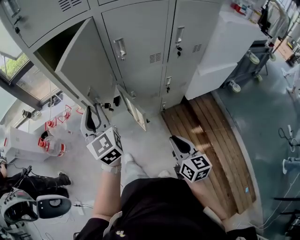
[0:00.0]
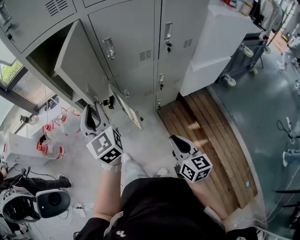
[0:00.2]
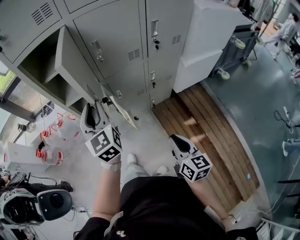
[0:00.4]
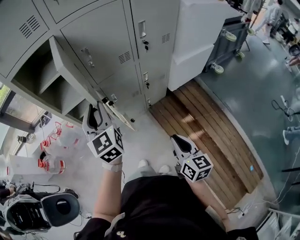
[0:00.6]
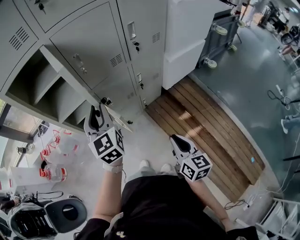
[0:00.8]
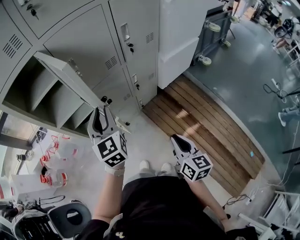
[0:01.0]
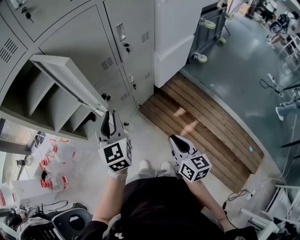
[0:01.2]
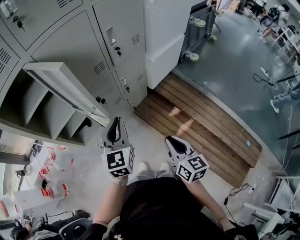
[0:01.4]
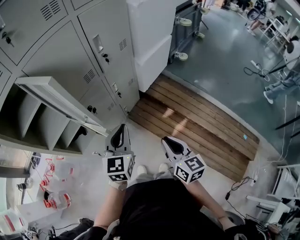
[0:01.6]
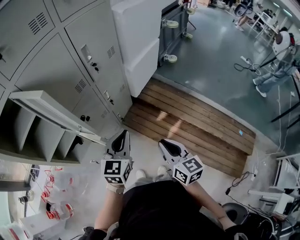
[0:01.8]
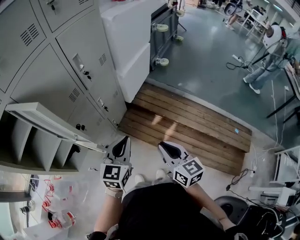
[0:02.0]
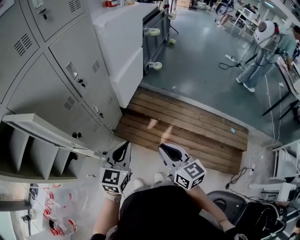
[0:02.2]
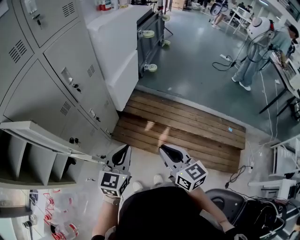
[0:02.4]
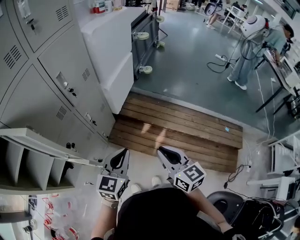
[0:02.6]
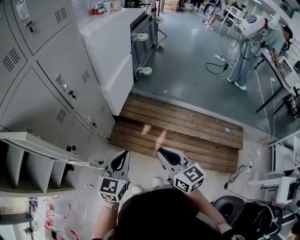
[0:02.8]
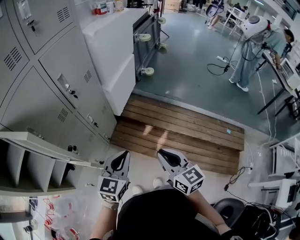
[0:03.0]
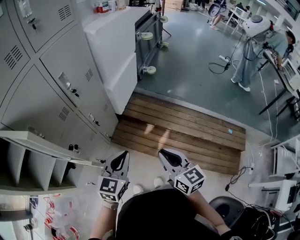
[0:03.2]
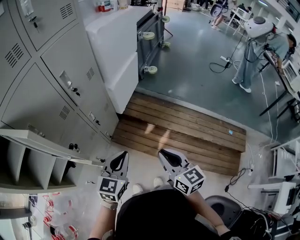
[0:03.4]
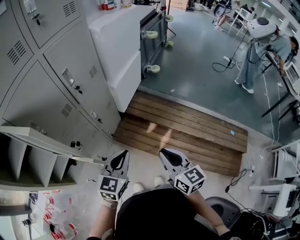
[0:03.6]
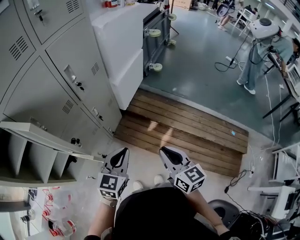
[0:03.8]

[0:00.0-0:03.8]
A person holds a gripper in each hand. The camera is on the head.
0:00.0 to 0:01.2: The left gripper shifts by some 20 cm, and rotates approximately 40 degrees, while the right gripper changes place by approximately 10 cm, and rotates about 20 degrees.
0:01.2 to 0:02.6: The right gripper ends up some 10 cm from where it was, while the left gripper moves some 20 cm, and turns by roughly 60 degrees.
0:02.6 to 0:03.8: The grippers stay close to where they were, moving slightly.

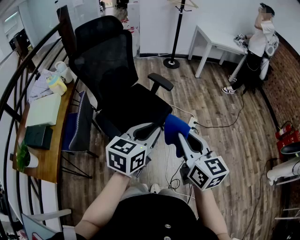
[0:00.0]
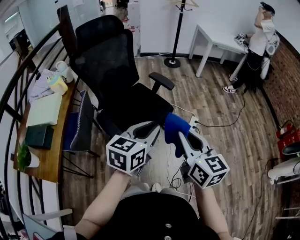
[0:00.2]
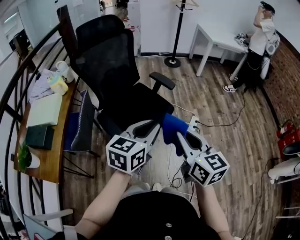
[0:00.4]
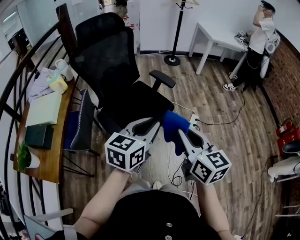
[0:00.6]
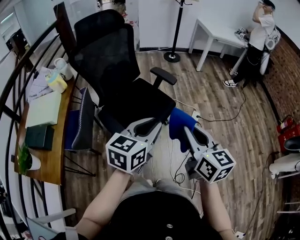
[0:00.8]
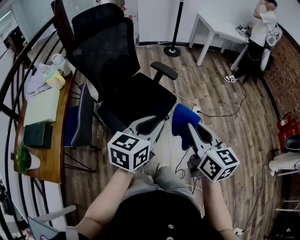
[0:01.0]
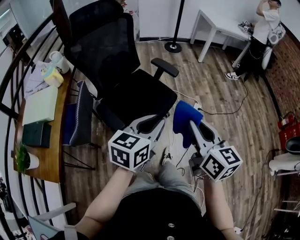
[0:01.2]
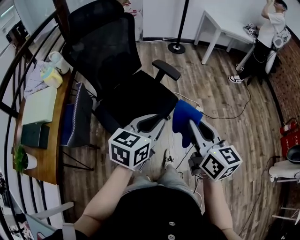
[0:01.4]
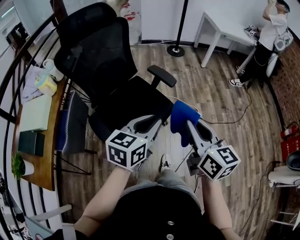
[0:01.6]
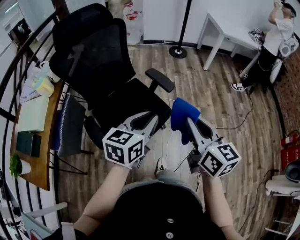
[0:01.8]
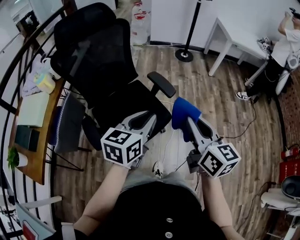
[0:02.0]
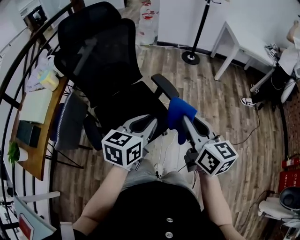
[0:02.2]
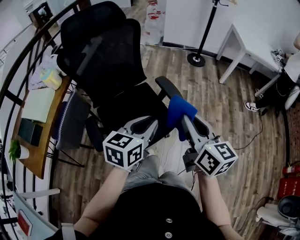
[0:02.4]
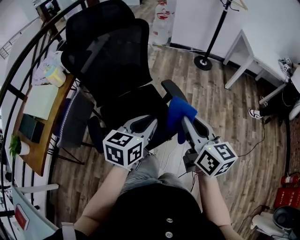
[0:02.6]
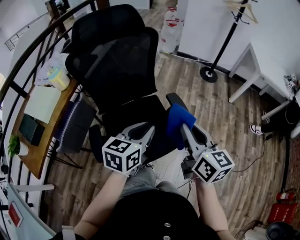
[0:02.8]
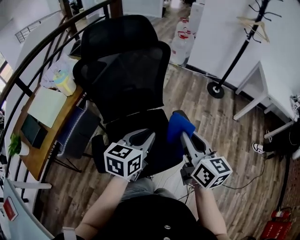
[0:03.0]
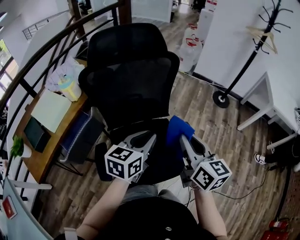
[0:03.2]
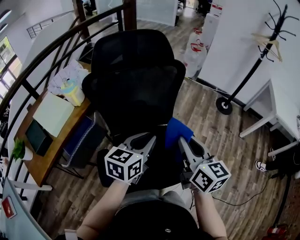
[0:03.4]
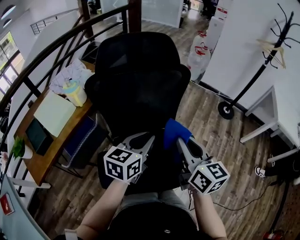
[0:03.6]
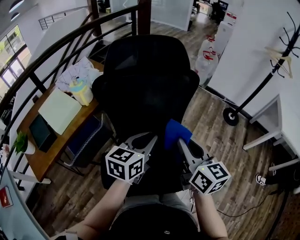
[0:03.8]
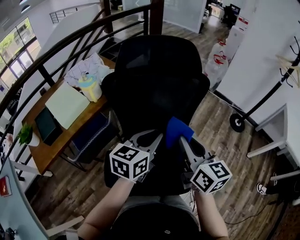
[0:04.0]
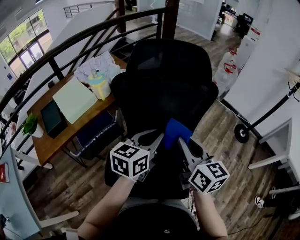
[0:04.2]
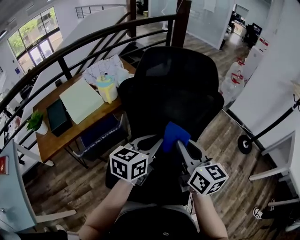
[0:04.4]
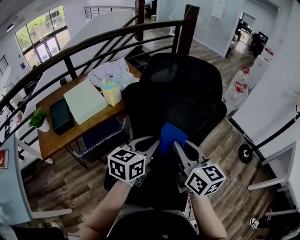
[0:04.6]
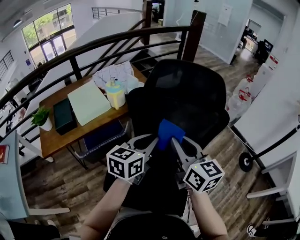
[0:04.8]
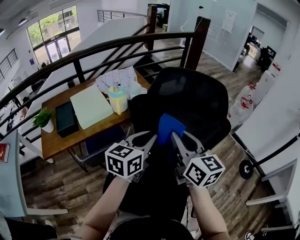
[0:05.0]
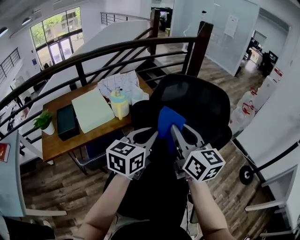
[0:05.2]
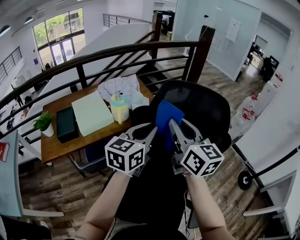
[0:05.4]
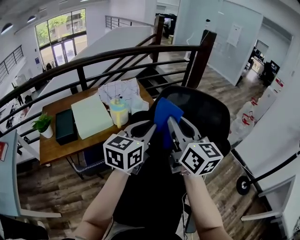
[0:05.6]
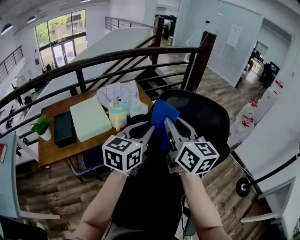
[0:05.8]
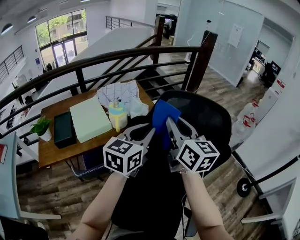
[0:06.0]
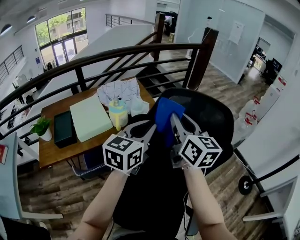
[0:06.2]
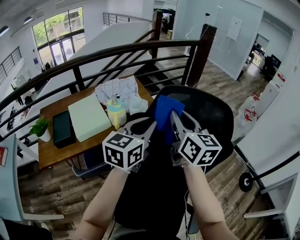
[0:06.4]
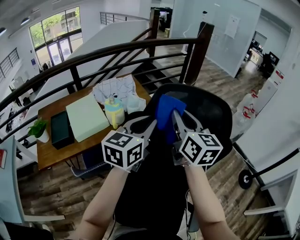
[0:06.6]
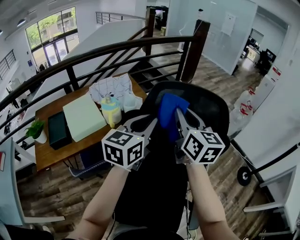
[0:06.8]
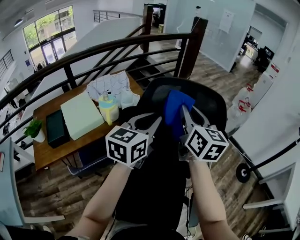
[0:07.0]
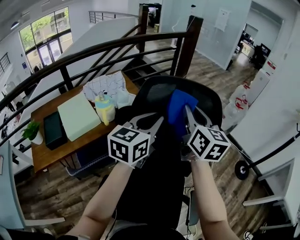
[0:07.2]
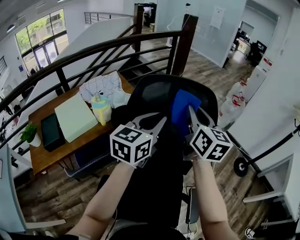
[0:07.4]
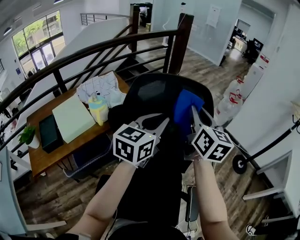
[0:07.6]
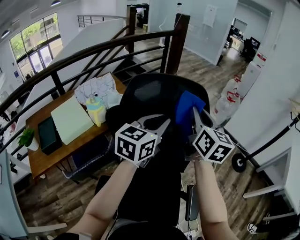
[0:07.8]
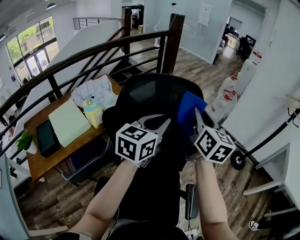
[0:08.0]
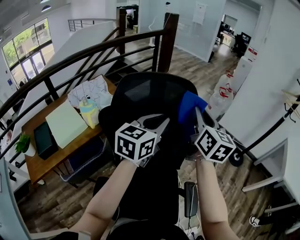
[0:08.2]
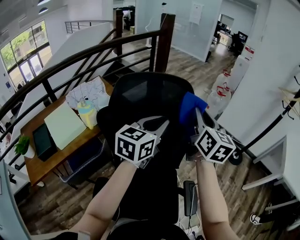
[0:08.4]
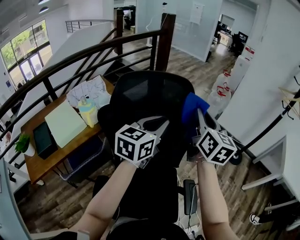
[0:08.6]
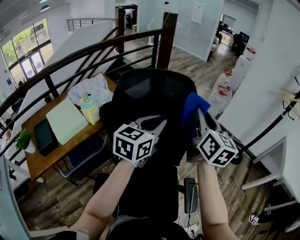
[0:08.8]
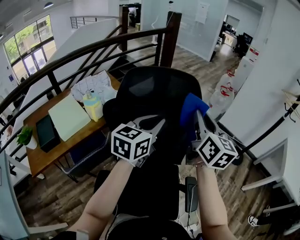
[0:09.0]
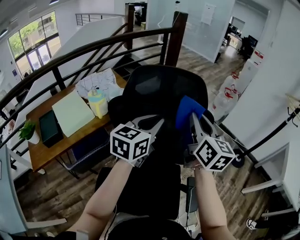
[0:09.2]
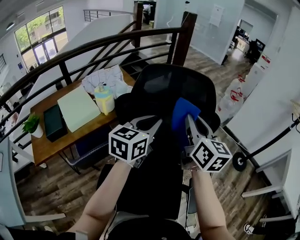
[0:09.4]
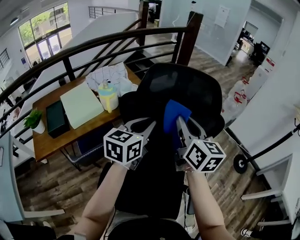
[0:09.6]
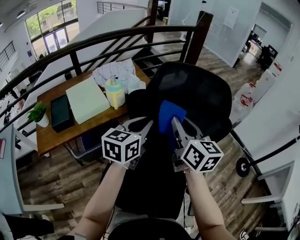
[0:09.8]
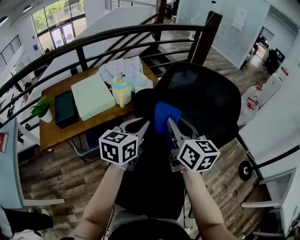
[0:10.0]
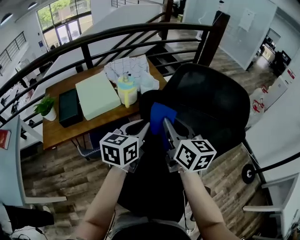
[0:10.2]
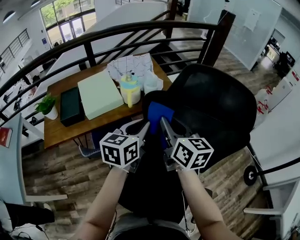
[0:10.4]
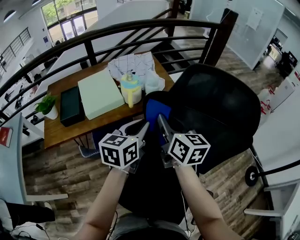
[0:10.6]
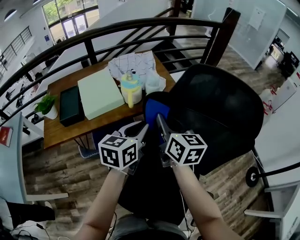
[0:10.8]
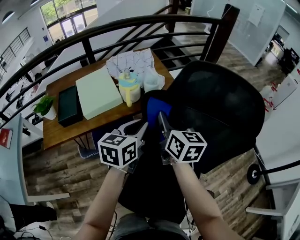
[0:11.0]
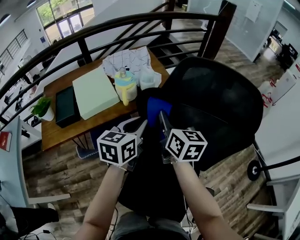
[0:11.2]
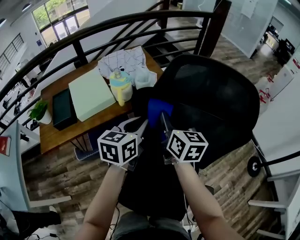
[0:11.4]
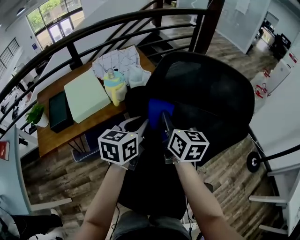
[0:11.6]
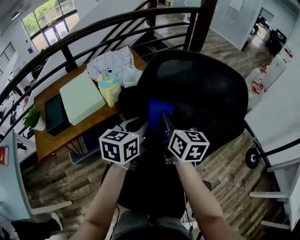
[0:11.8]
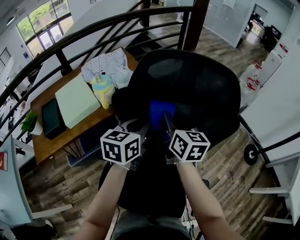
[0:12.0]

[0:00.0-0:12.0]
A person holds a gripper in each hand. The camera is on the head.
0:00.0 to 0:01.6: The two grippers go about 15 cm forward.
0:01.6 to 0:03.0: The left gripper changes place by some 25 cm, and rotates roughly 30 degrees; the right gripper ends up about 30 cm from where it was, and rotates about 20 degrees.
0:03.0 to 0:04.4: Both grippers move forward and to the left, about 20 cm. The right gripper swivels some 30 degrees, while the left gripper swivels about 20 degrees.
0:04.4 to 0:06.0: The left gripper travels forward, upward and to the left by some 20 cm, and changes its angle by approximately 20 degrees, while the right gripper heads forward and upward, covering approximately 25 cm.
0:06.0 to 0:07.6: Both grippers move to the right, approximately 15 cm. The right gripper swivels approximately 30 degrees.
0:07.6 to 0:09.0: The right gripper heads to the right and backward, covering some 10 cm; the left gripper ends up some 5 cm from where it was.
0:09.0 to 0:10.4: The left gripper shifts by roughly 25 cm, and turns by some 30 degrees. Meanwhile the right gripper ends up some 30 cm from where it was, and rotates approximately 40 degrees.
0:10.4 to 0:12.0: Both grippers travel together to the right, about 10 cm.

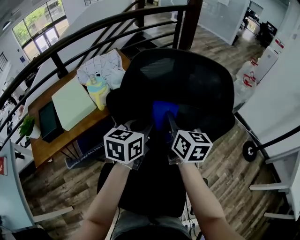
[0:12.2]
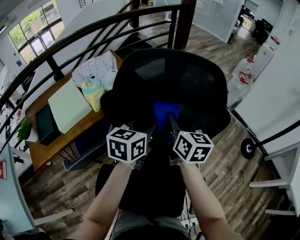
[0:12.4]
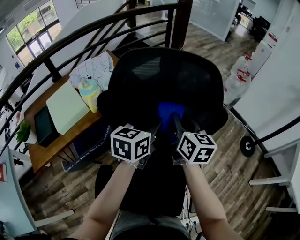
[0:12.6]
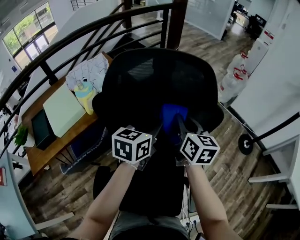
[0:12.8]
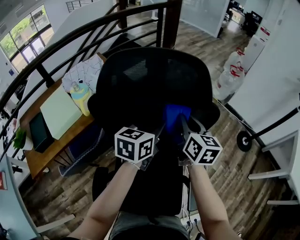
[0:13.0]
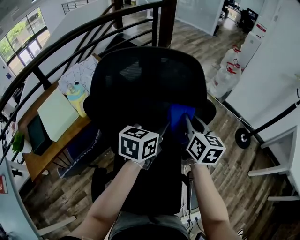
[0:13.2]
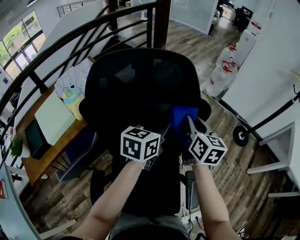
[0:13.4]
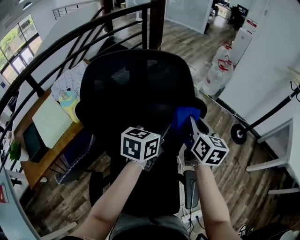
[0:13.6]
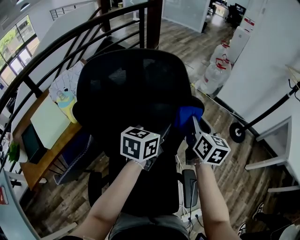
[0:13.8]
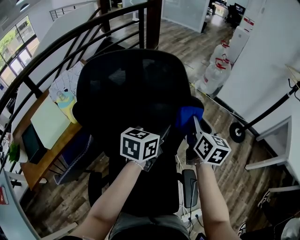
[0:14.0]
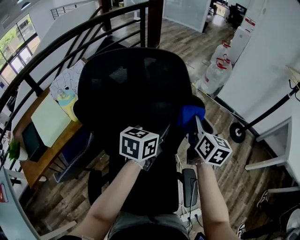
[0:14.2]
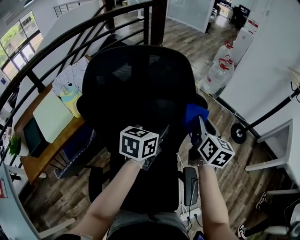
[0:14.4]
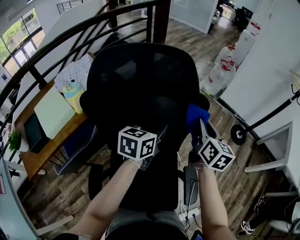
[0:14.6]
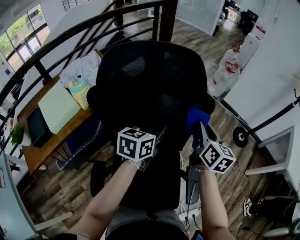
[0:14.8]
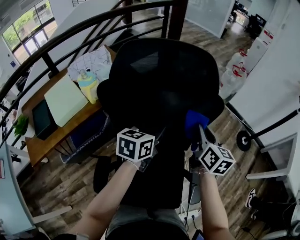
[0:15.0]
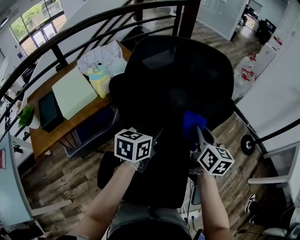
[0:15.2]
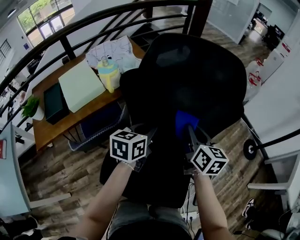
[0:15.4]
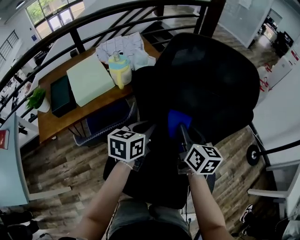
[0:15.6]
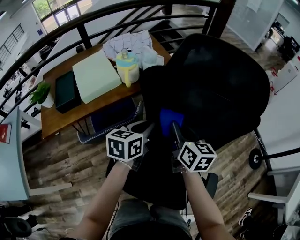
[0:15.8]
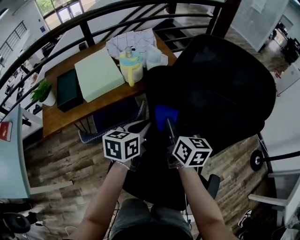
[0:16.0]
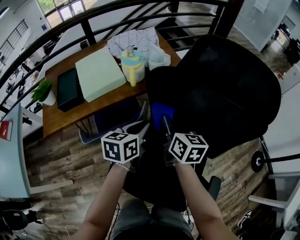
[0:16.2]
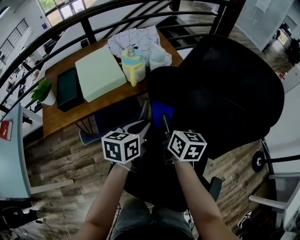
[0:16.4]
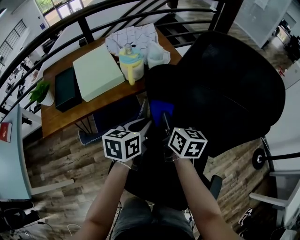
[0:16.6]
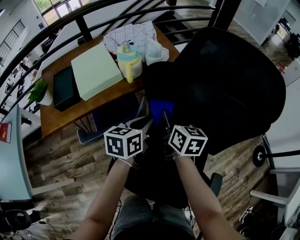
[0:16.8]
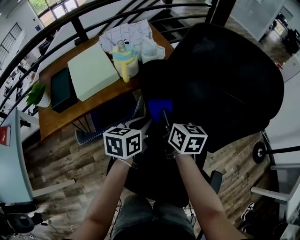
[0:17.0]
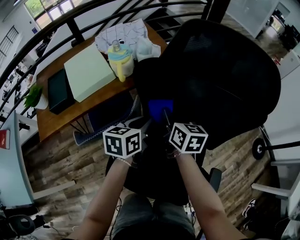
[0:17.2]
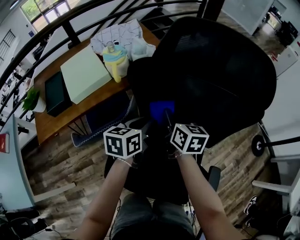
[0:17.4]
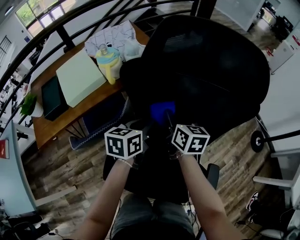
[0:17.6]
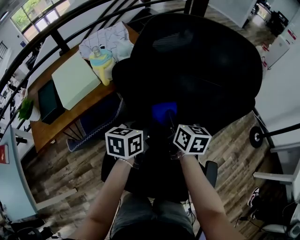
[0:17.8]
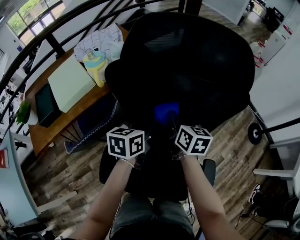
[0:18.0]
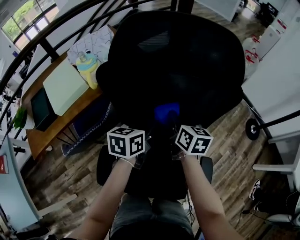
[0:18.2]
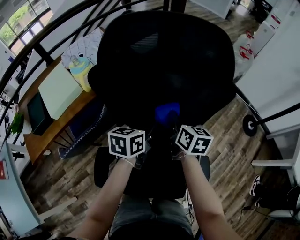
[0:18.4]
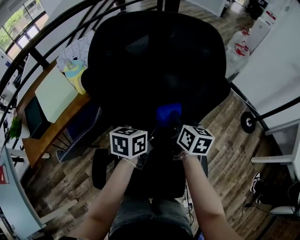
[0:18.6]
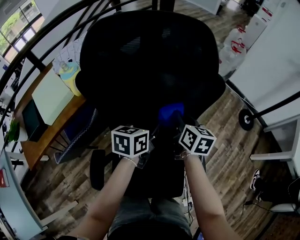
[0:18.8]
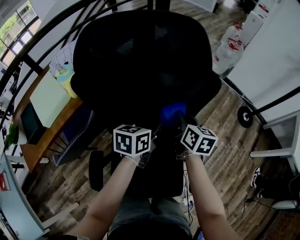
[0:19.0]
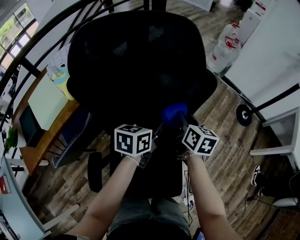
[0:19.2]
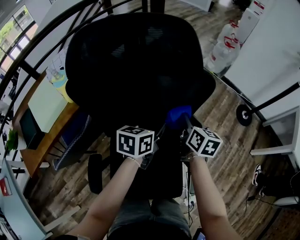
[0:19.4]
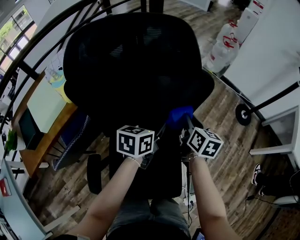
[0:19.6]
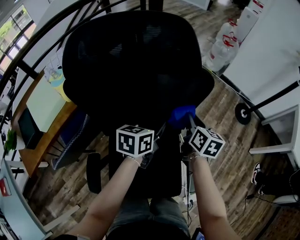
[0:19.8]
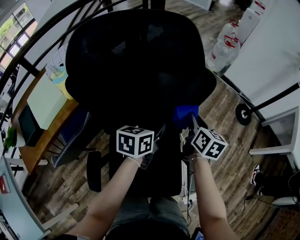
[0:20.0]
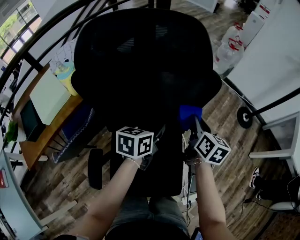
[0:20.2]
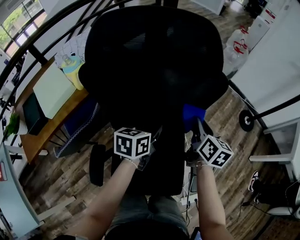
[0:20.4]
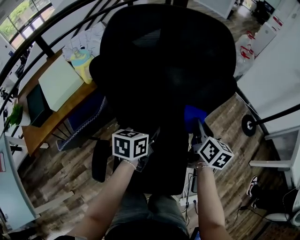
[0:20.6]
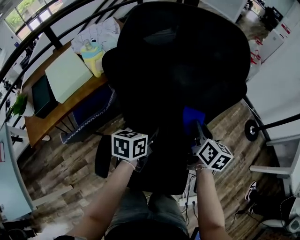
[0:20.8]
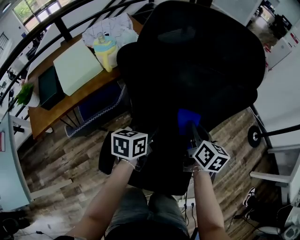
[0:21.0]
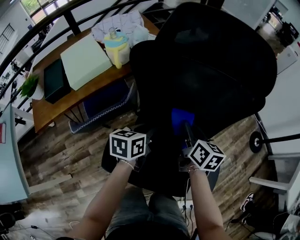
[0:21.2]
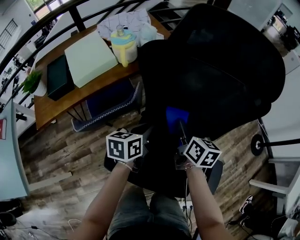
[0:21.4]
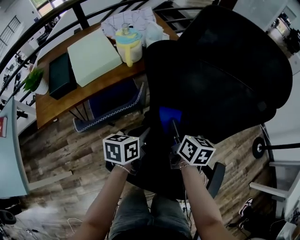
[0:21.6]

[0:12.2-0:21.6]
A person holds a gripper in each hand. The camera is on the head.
0:12.2 to 0:13.8: Both grippers travel together to the right, about 20 cm. The left gripper turns by approximately 20 degrees. The right gripper changes its angle by approximately 20 degrees.
0:13.8 to 0:15.4: The two grippers go some 20 cm to the left and backward. The left gripper turns by approximately 20 degrees; the right gripper changes its angle by roughly 20 degrees.
0:15.4 to 0:17.0: The left gripper is displaced to the left by approximately 10 cm. Meanwhile the right gripper travels to the left and forward by roughly 20 cm.
0:17.0 to 0:18.4: Both grippers move to the right, roughly 20 cm.
0:18.4 to 0:20.0: Both grippers travel together to the right, approximately 15 cm.
0:20.0 to 0:21.6: The left gripper ends up some 30 cm from where it was, and changes its angle by about 30 degrees. The right gripper moves some 30 cm, and changes its angle by about 30 degrees.
